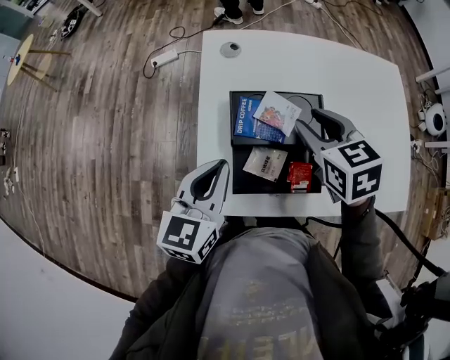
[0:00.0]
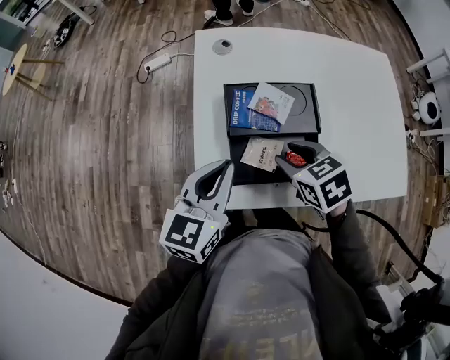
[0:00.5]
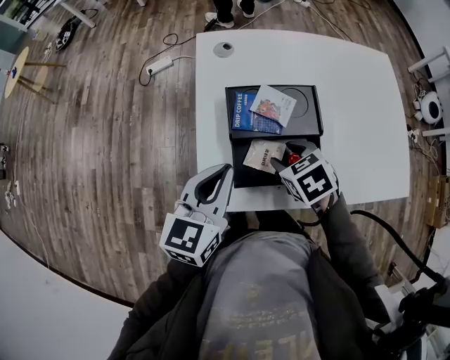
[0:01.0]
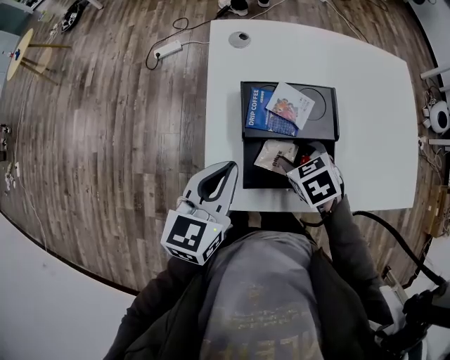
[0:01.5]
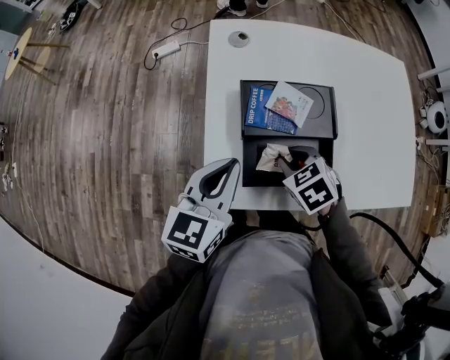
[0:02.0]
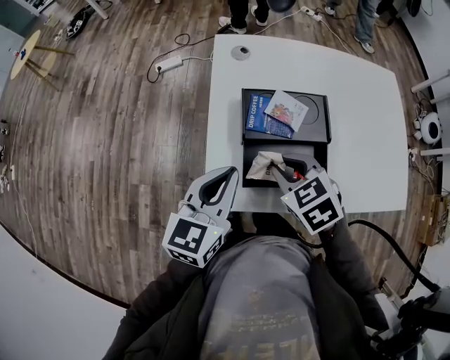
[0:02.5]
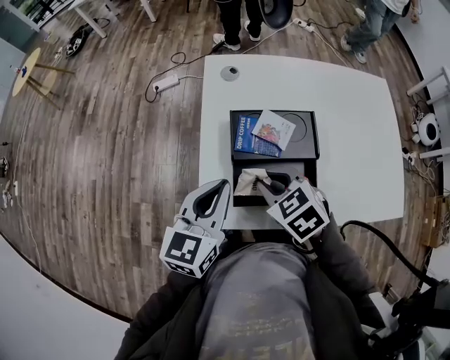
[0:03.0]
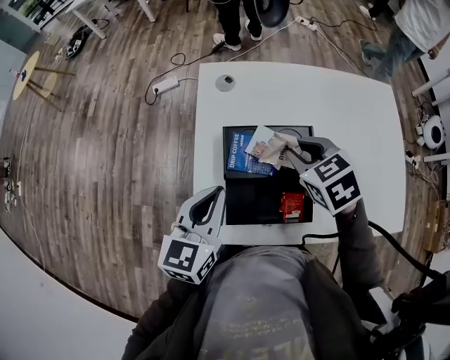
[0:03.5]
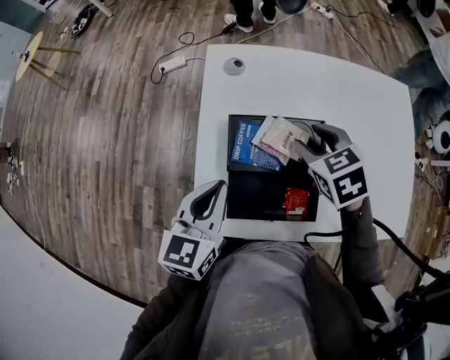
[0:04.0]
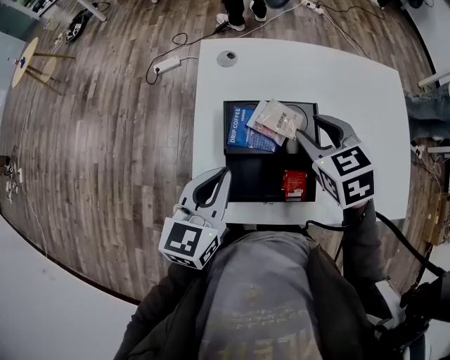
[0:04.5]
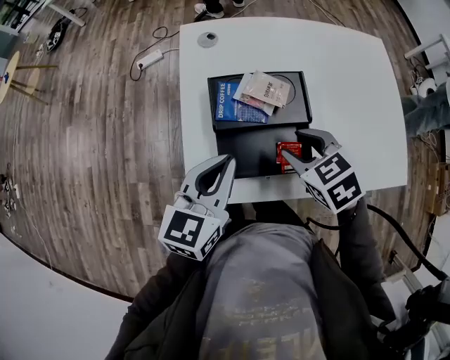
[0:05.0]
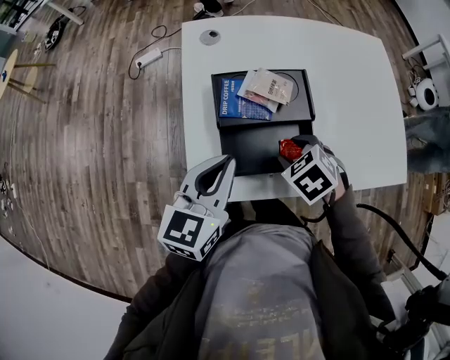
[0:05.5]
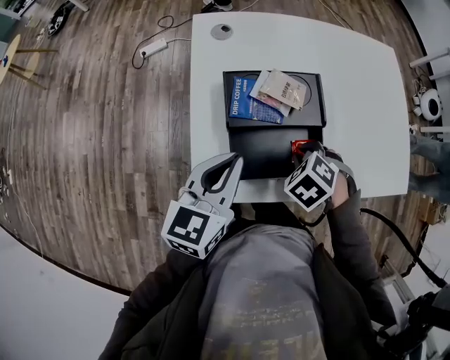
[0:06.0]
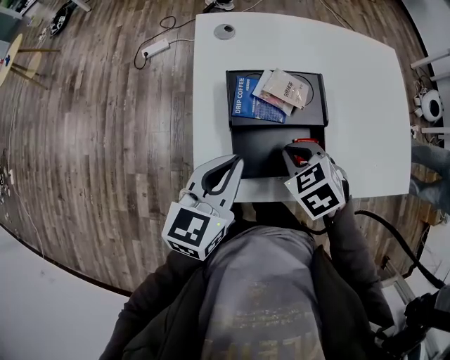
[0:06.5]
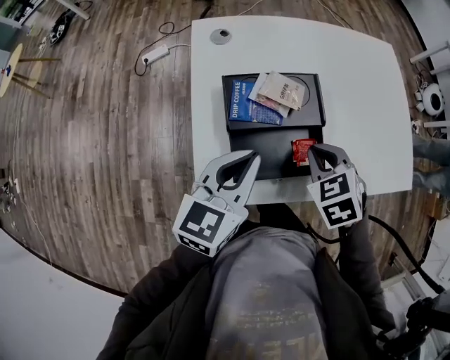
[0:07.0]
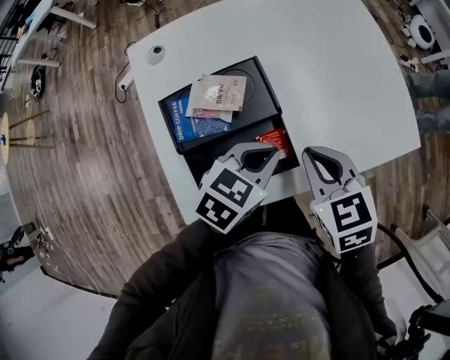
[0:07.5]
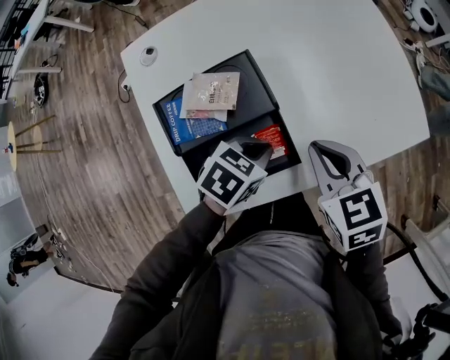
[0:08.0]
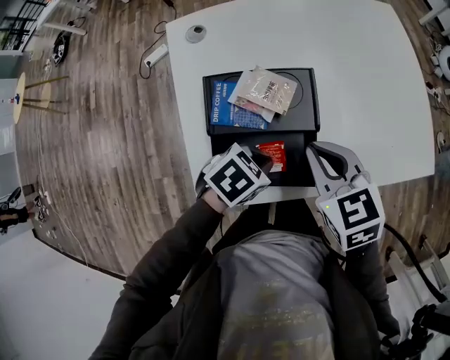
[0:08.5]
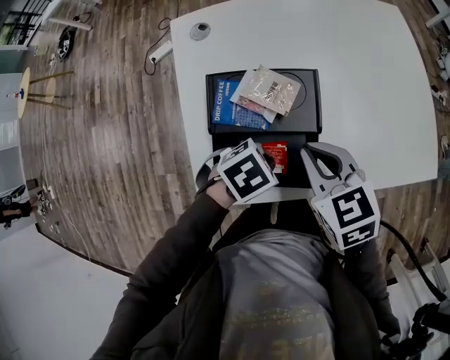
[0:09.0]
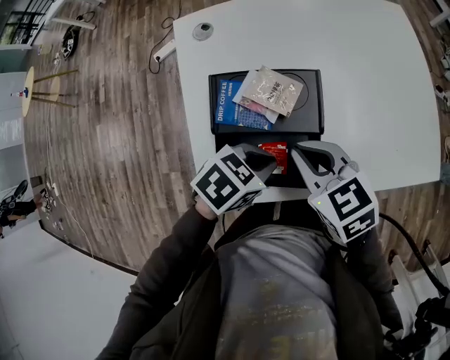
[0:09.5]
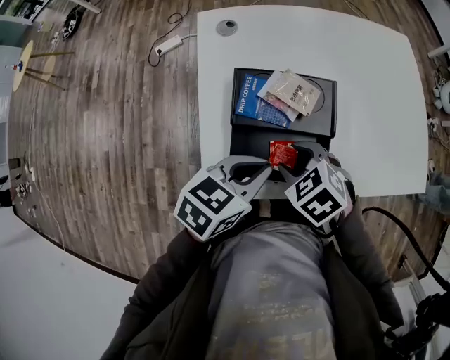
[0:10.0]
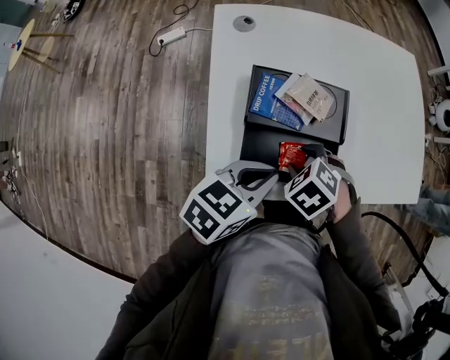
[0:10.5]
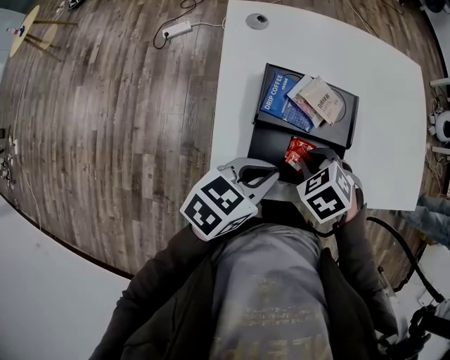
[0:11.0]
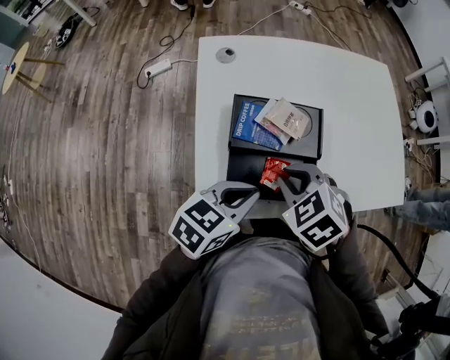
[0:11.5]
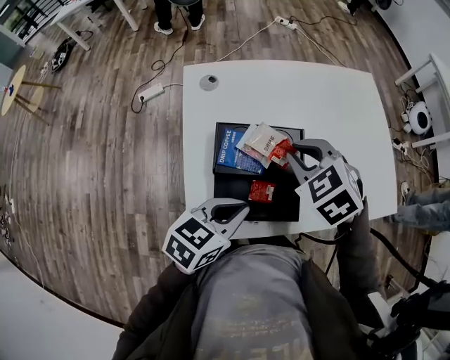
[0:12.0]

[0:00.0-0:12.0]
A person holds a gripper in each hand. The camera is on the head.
0:00.0 to 0:02.0: The right gripper shifts about 20 cm downward, backward and to the left, and turns by about 20 degrees.
0:02.0 to 0:04.0: The right gripper heads forward, upward and to the right, covering about 15 cm, and opens.
0:04.0 to 0:06.0: The right gripper changes place by roughly 20 cm, swivels some 30 degrees, and closes up.
0:06.0 to 0:08.0: The right gripper changes place by roughly 15 cm, and tips its fingers upward by some 30 degrees. Meanwhile the left gripper changes place by some 20 cm, and tilts its fingers approximately 30 degrees downward.
0:08.0 to 0:10.0: The right gripper moves roughly 15 cm, changes its angle by about 40 degrees, and opens up. Meanwhile the left gripper changes place by approximately 15 cm, and rotates approximately 30 degrees.
0:10.0 to 0:12.0: The right gripper ends up approximately 15 cm from where it was, and closes its fingers.

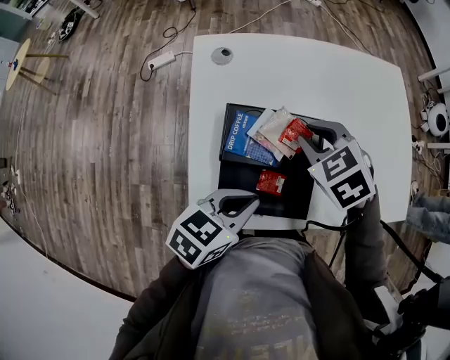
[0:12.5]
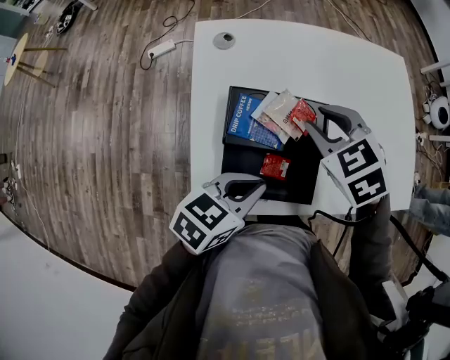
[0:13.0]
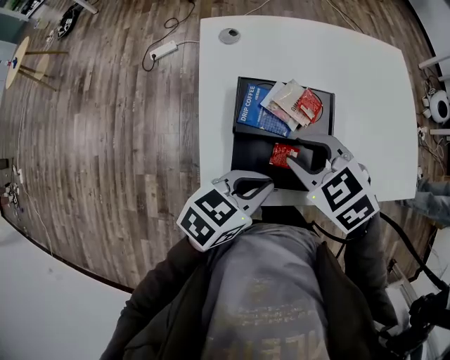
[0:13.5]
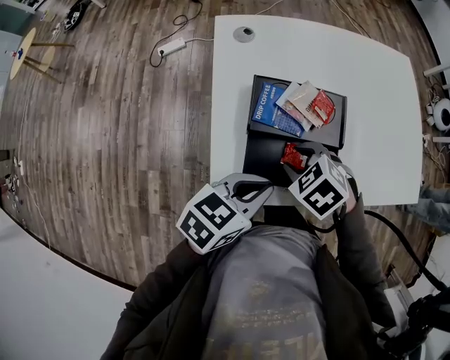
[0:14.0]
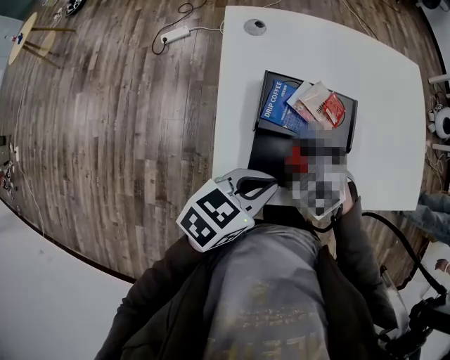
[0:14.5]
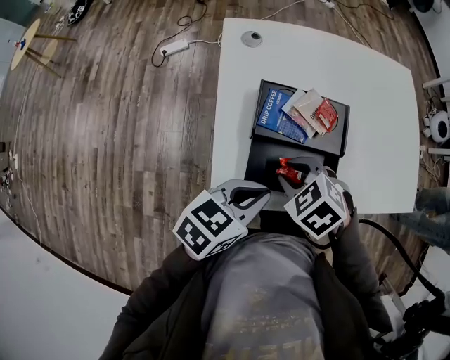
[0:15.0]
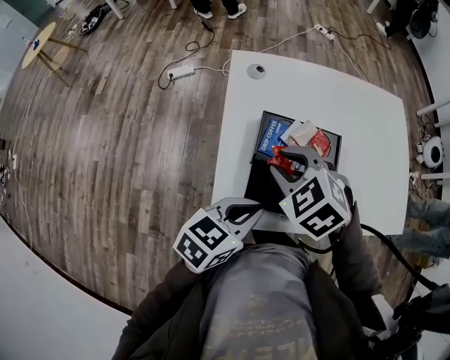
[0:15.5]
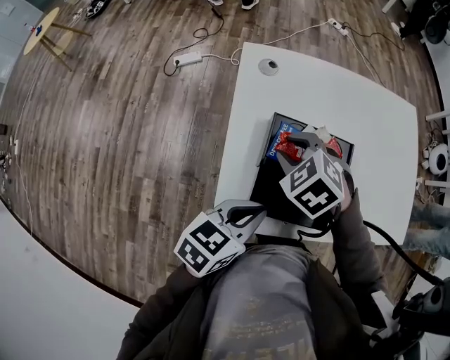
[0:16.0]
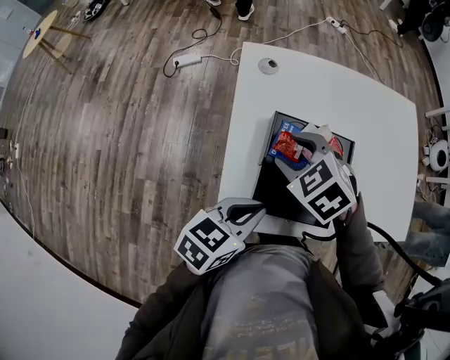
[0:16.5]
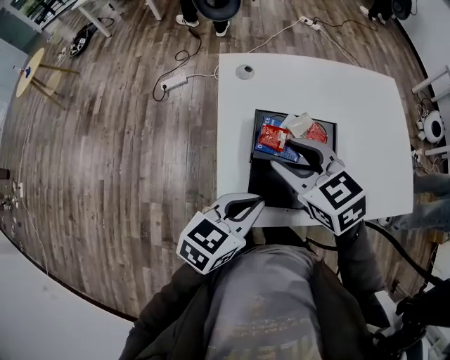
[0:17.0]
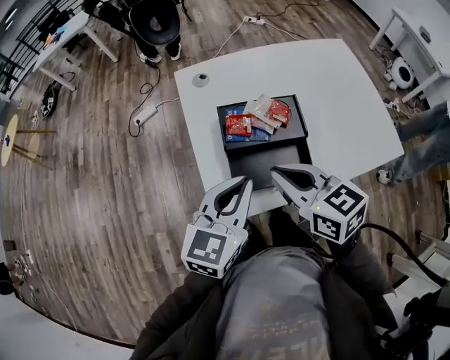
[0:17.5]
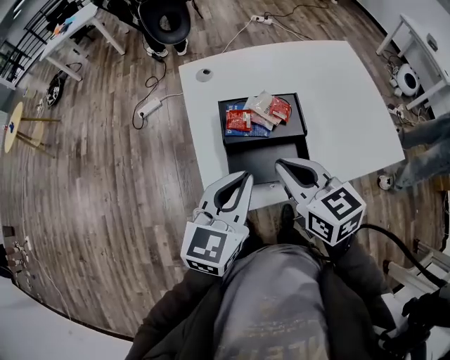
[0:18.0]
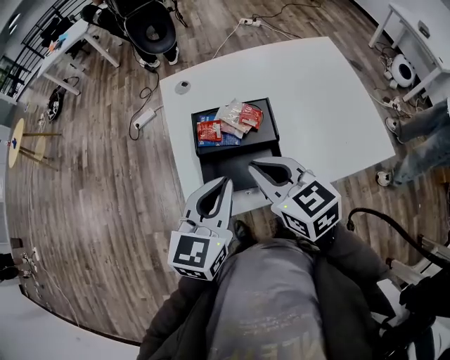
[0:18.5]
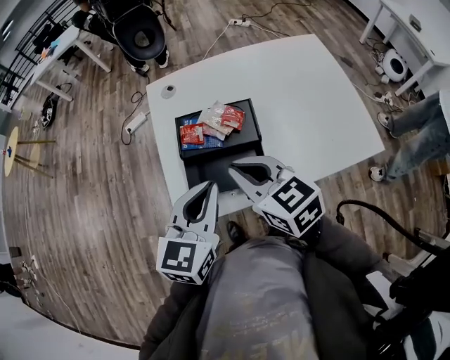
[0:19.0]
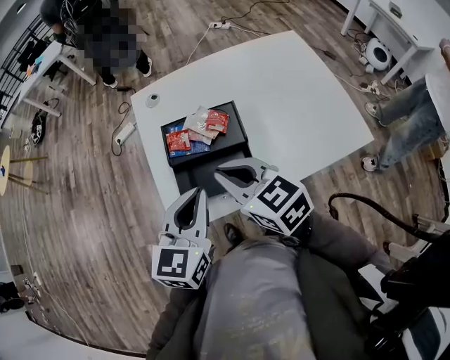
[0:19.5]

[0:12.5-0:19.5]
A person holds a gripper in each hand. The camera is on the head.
0:12.5 to 0:14.5: The right gripper moves backward and downward, approximately 20 cm.
0:14.5 to 0:16.0: The right gripper shifts approximately 15 cm forward, upward and to the left.
0:16.0 to 0:17.5: The left gripper goes some 5 cm upward, and changes its angle by roughly 30 degrees. The right gripper shifts some 20 cm backward, upward and to the right, tilts its fingers some 40 degrees upward, and closes up.
0:17.5 to 0:19.5: The left gripper shifts approximately 5 cm to the right.

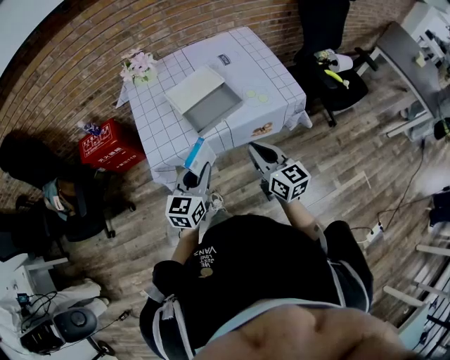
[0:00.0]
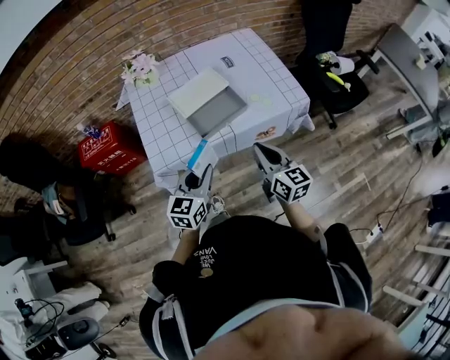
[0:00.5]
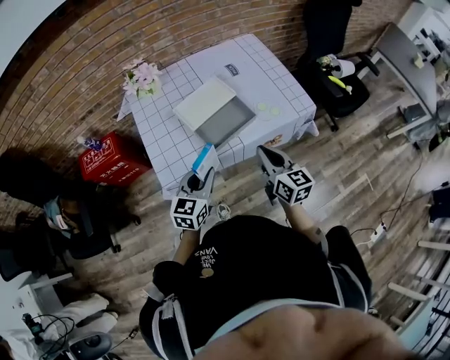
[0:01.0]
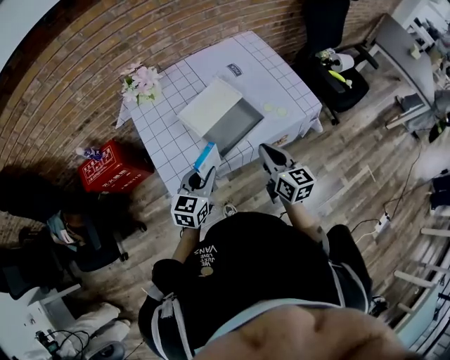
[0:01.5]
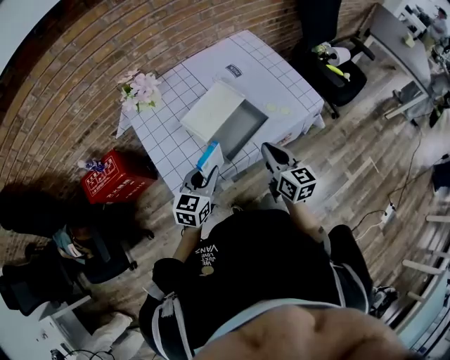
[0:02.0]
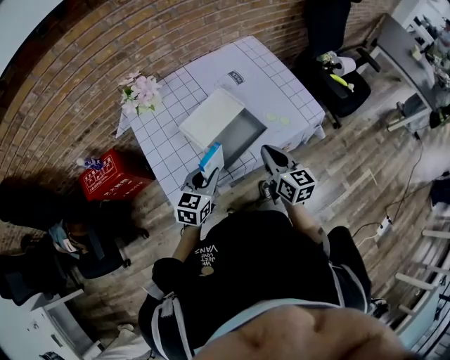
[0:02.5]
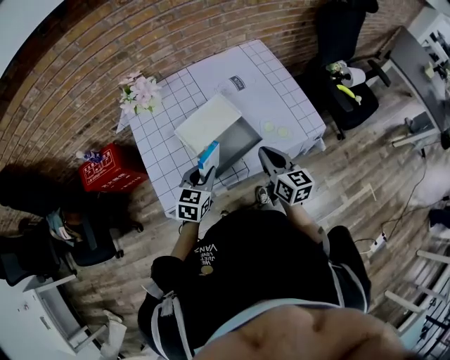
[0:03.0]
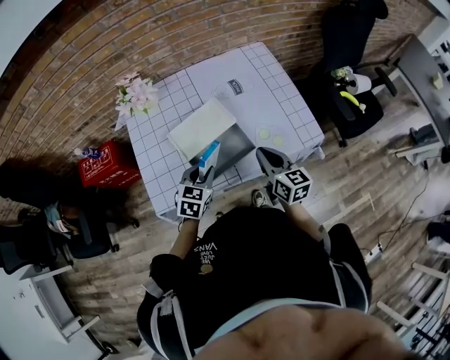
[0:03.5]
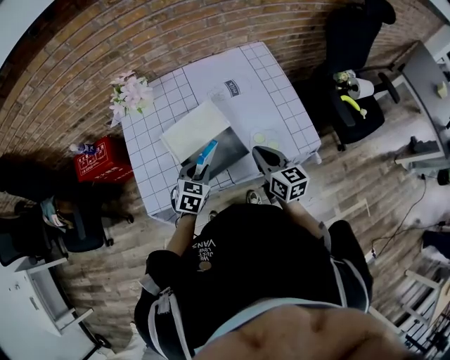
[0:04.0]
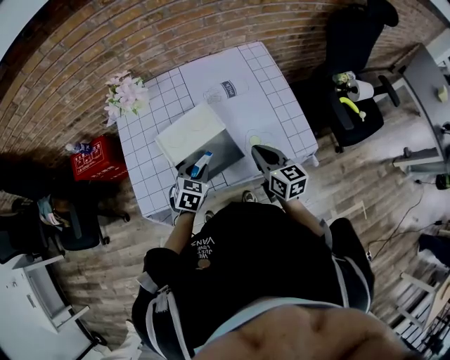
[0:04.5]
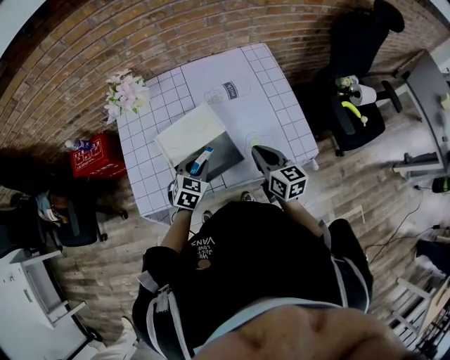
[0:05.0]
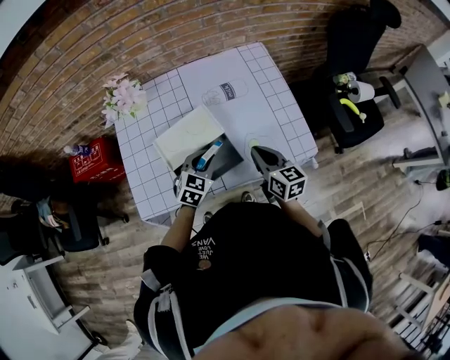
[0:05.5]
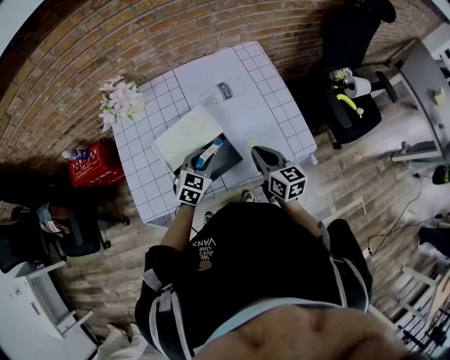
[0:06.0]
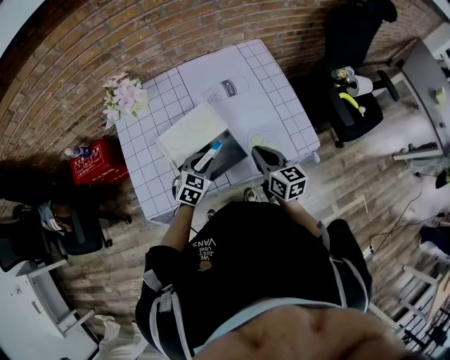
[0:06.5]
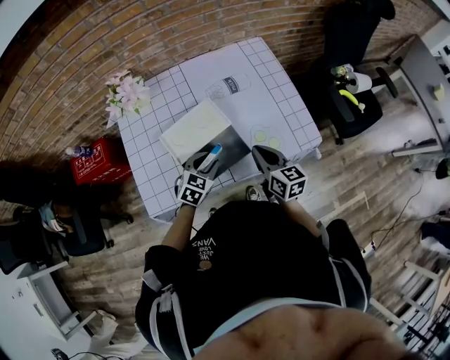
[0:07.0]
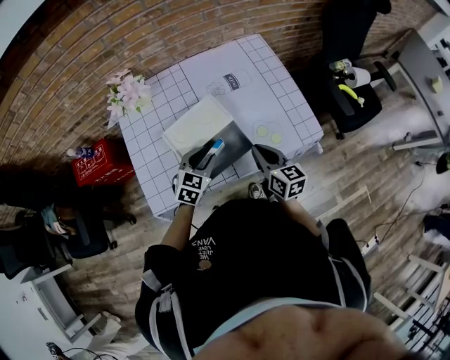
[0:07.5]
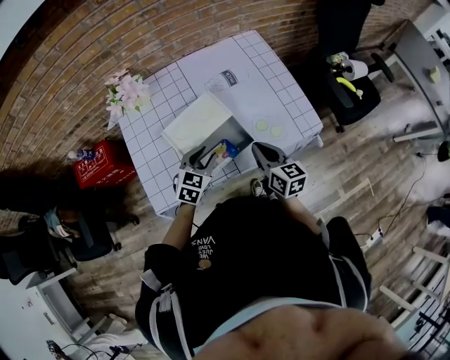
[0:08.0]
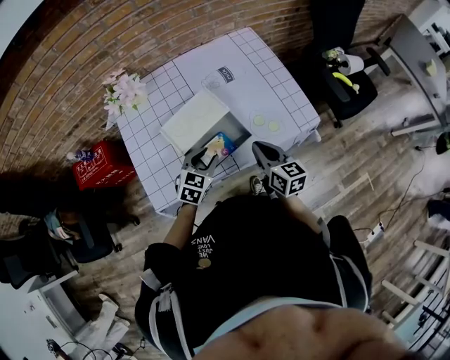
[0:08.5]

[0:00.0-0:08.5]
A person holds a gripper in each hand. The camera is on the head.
0:00.0 to 0:02.0: The two grippers go approximately 15 cm forward and to the left.
0:02.0 to 0:04.0: The right gripper moves forward and to the right, about 15 cm. Meanwhile the left gripper goes roughly 15 cm forward, to the right and downward, and rotates some 30 degrees.
0:04.0 to 0:06.5: The left gripper changes place by approximately 5 cm.
0:06.5 to 0:08.5: The right gripper goes approximately 5 cm backward. Meanwhile the left gripper ends up approximately 5 cm from where it was.
